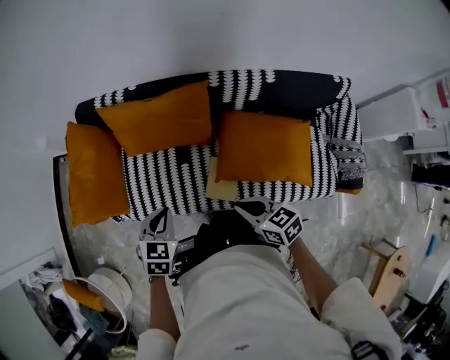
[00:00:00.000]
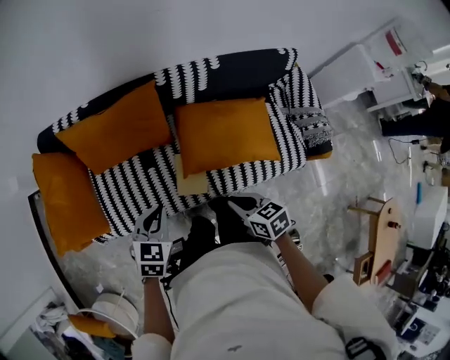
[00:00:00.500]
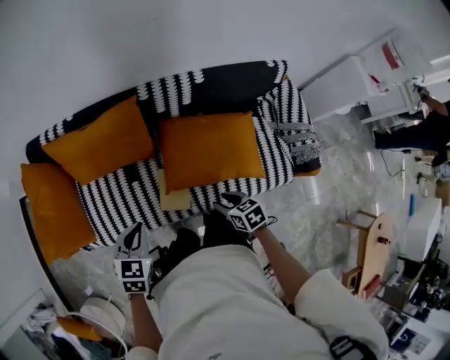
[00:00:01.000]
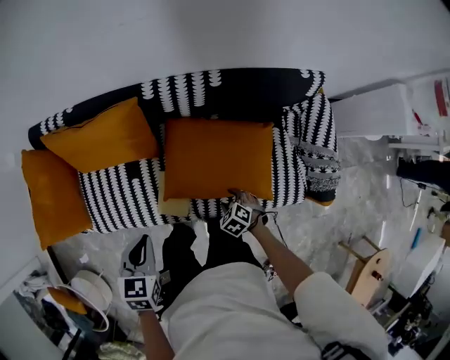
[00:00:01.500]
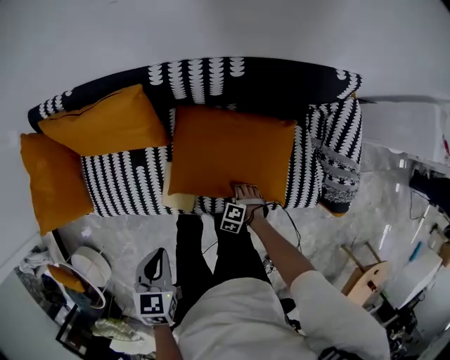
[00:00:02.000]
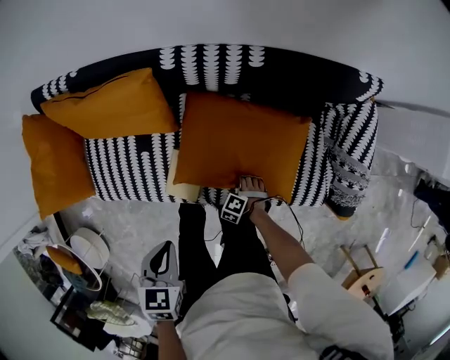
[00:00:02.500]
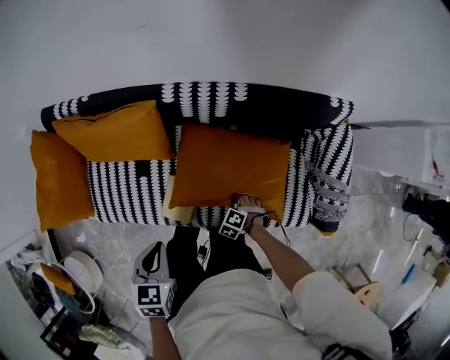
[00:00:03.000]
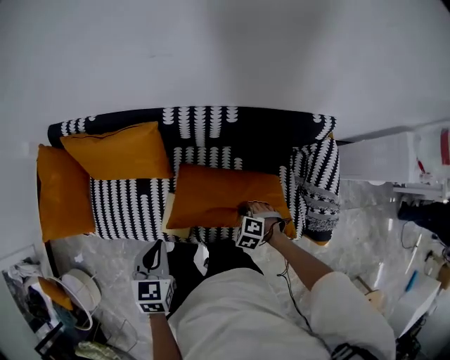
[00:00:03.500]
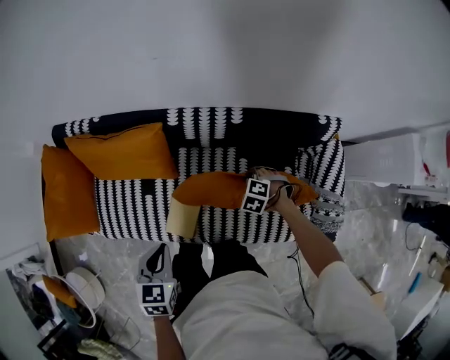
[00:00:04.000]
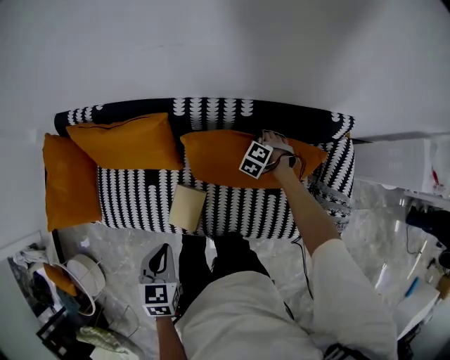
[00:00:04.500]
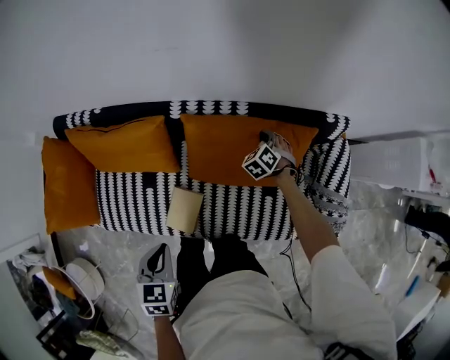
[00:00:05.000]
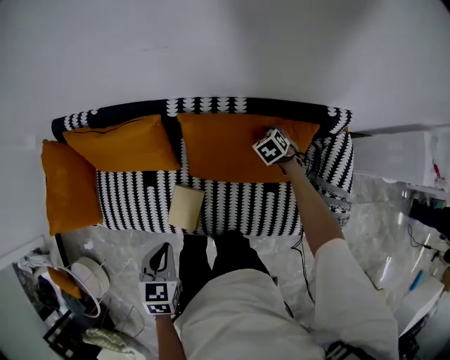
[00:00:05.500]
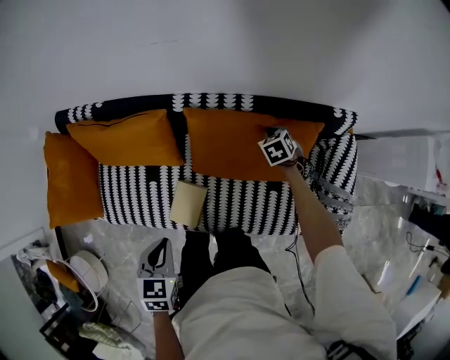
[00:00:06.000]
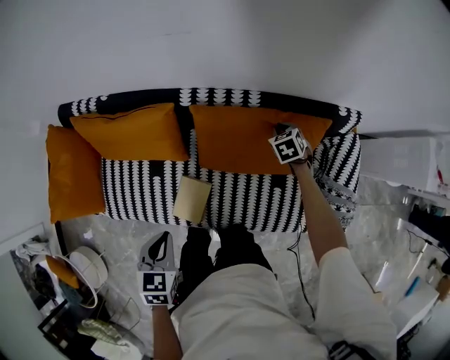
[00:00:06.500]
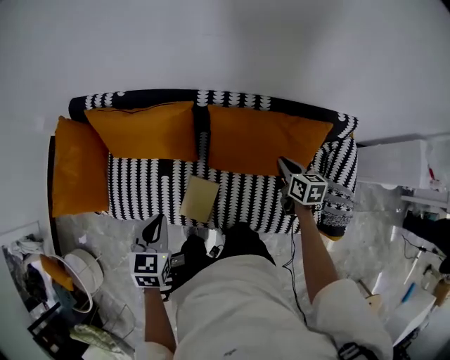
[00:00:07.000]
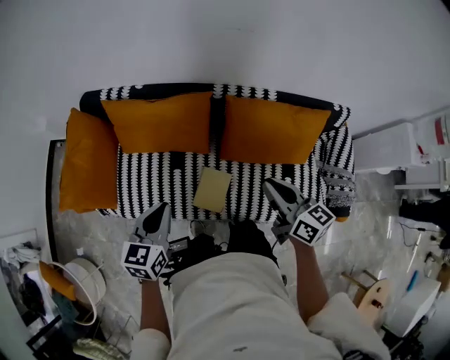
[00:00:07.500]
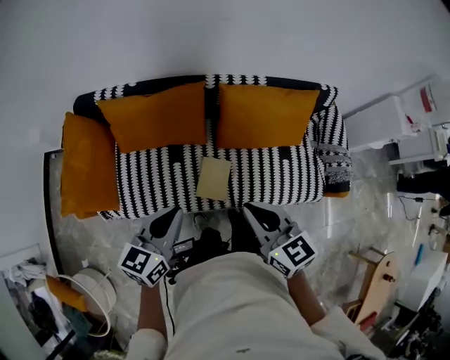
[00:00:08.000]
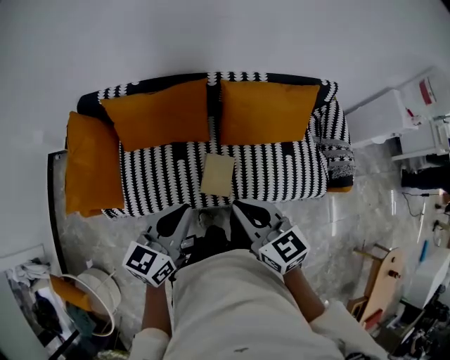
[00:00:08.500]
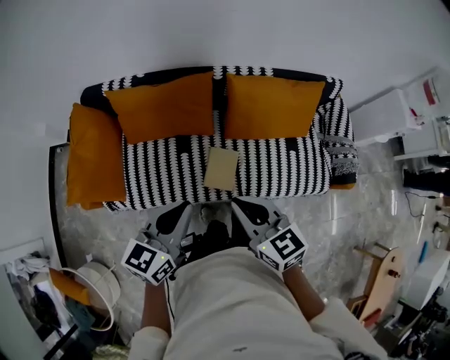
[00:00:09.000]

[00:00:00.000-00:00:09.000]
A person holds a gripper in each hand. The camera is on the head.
00:00:00.000 to 00:00:02.000: The left gripper shifts by about 20 cm, and swivels about 20 degrees. The right gripper travels downward by about 35 cm, angles its fingers downward, by some 50 degrees, and opens.
00:00:02.000 to 00:00:04.500: The right gripper moves roughly 40 cm, rotates approximately 20 degrees, and closes; the left gripper shifts by roughly 5 cm.
00:00:04.500 to 00:00:07.000: The left gripper is displaced to the left by approximately 10 cm, while the right gripper shifts about 20 cm upward and backward, rolls clockwise, seen from behind, by about 80 degrees, and opens, then closes once more.
00:00:07.000 to 00:00:09.000: The right gripper moves to the left, backward and upward, some 50 cm, and swivels some 30 degrees; the left gripper goes approximately 20 cm backward, upward and to the left, and swivels about 40 degrees.

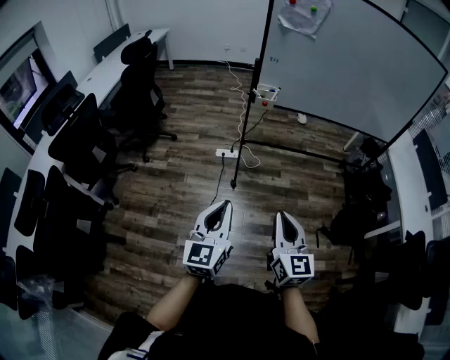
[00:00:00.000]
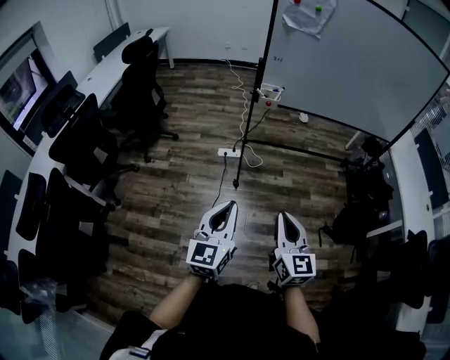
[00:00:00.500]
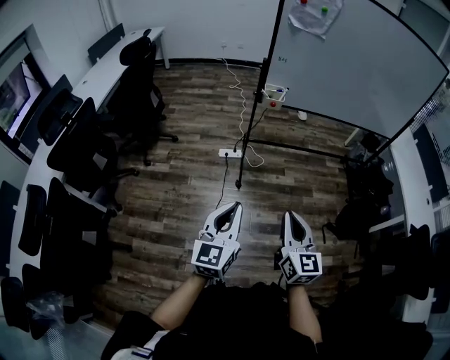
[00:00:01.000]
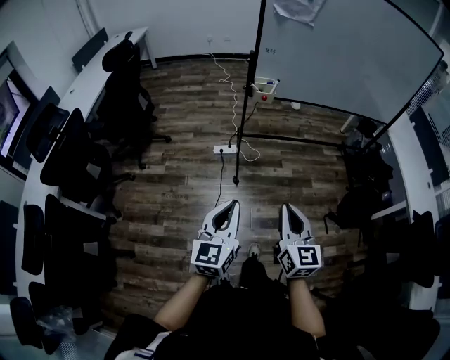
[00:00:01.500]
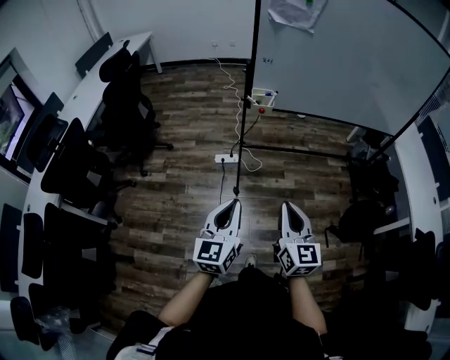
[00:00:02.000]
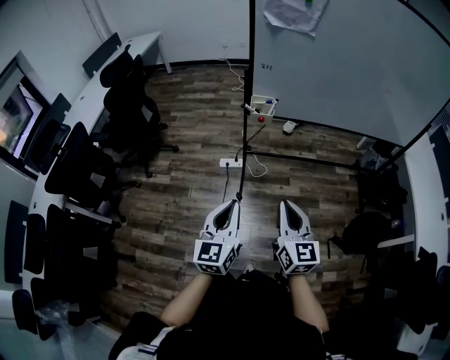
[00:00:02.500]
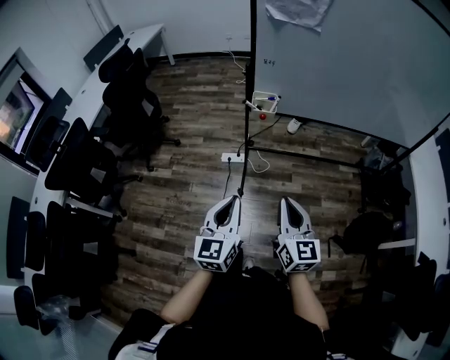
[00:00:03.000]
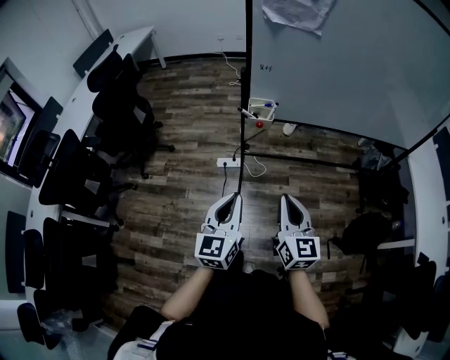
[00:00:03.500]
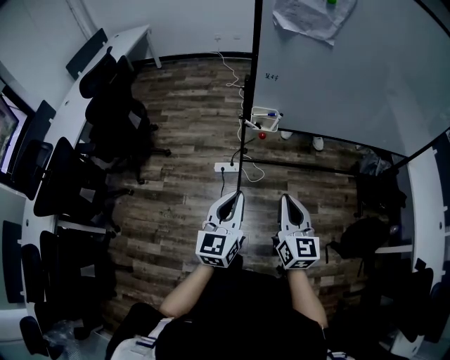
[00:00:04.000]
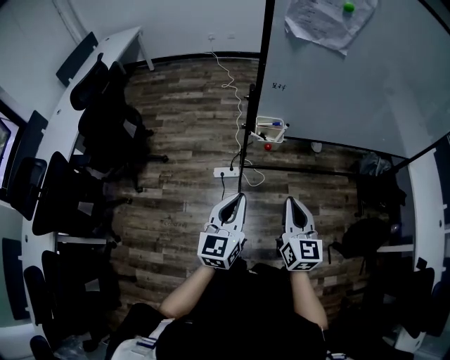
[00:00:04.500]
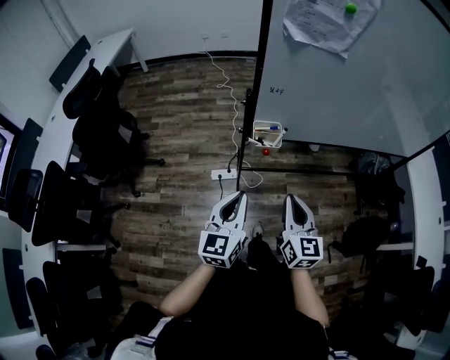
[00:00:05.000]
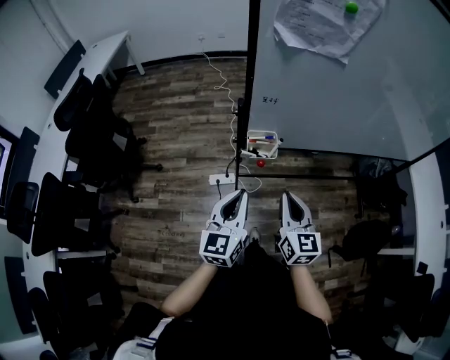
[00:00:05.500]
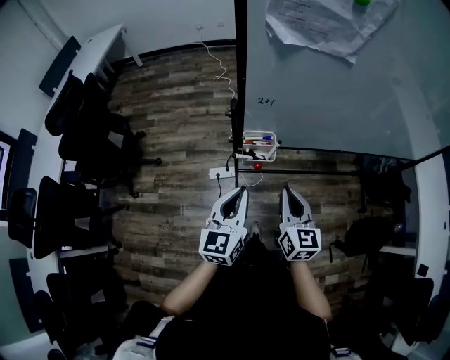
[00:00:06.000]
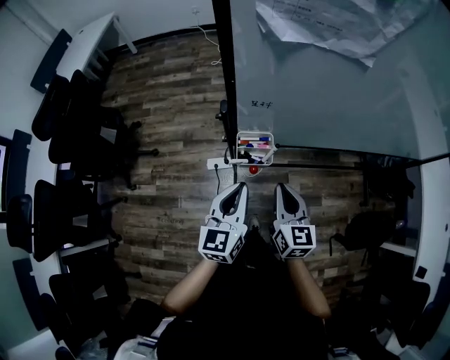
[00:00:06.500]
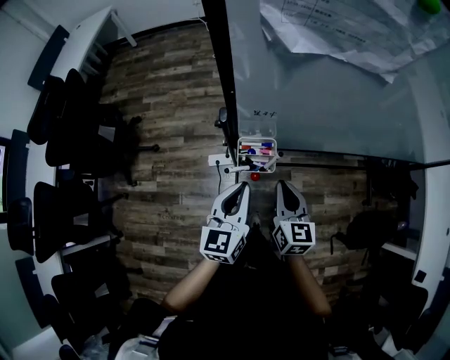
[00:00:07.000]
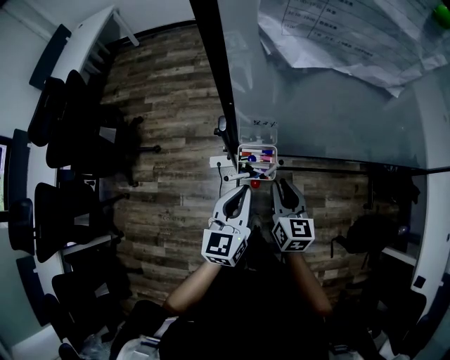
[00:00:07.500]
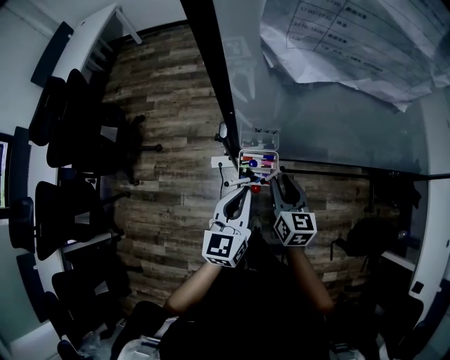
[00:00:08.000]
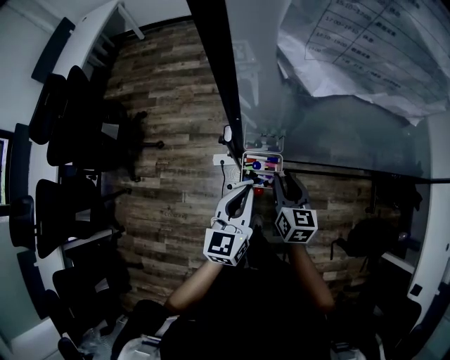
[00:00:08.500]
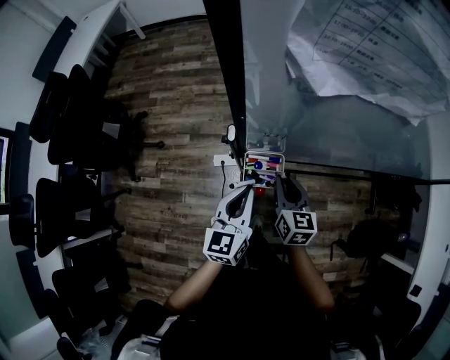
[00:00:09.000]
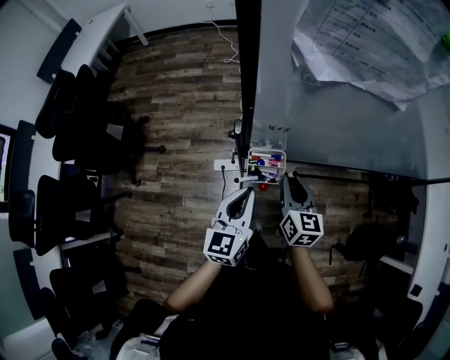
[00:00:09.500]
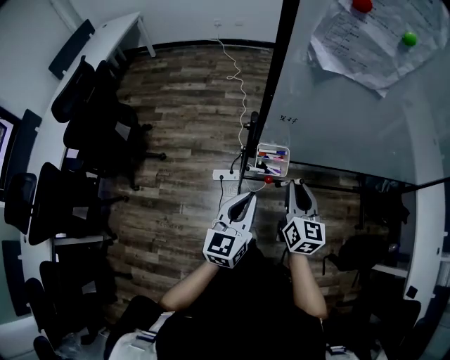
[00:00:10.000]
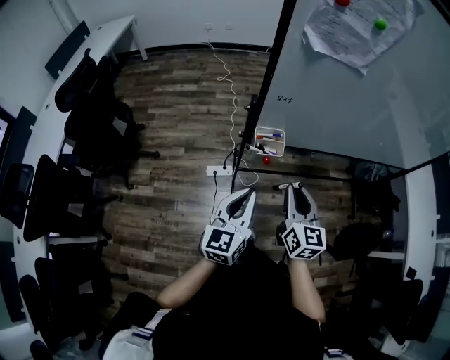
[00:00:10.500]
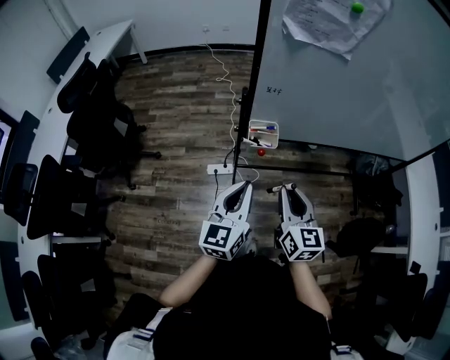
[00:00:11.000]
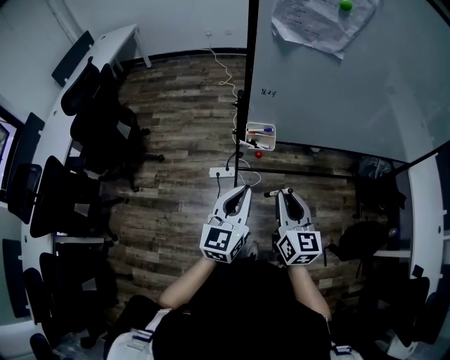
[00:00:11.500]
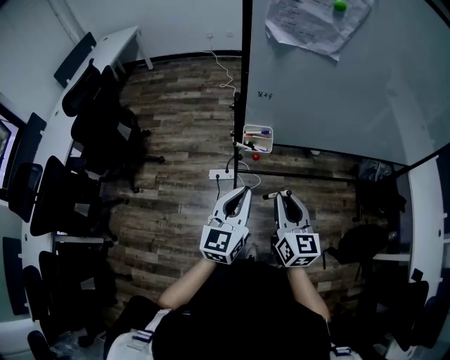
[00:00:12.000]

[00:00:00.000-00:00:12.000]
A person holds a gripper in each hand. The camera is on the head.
00:00:00.000 to 00:00:02.000: Both grippers travel together forward, approximately 15 cm.
00:00:02.000 to 00:00:04.000: The grippers both shift forward by approximately 20 cm.
00:00:04.000 to 00:00:06.000: Both grippers move forward, some 20 cm.
00:00:06.000 to 00:00:08.000: Both grippers travel together forward and downward, some 15 cm. The right gripper opens.
00:00:08.000 to 00:00:10.000: The left gripper travels backward by approximately 10 cm. Meanwhile the right gripper is displaced upward and backward by approximately 10 cm.
00:00:10.000 to 00:00:12.000: The right gripper is displaced backward by some 15 cm. Meanwhile the left gripper shifts some 10 cm backward.

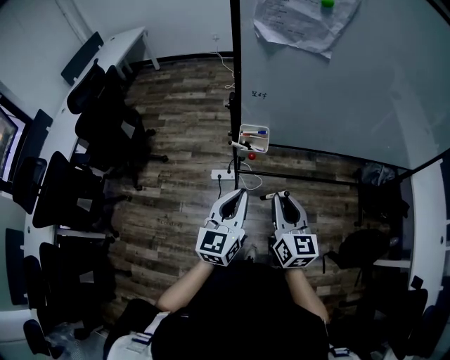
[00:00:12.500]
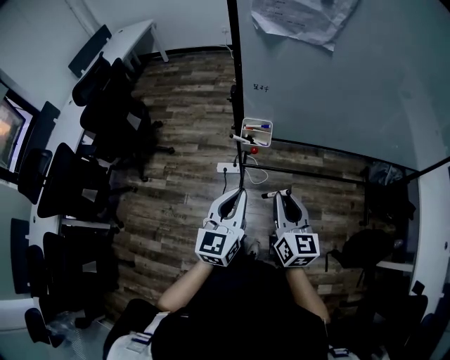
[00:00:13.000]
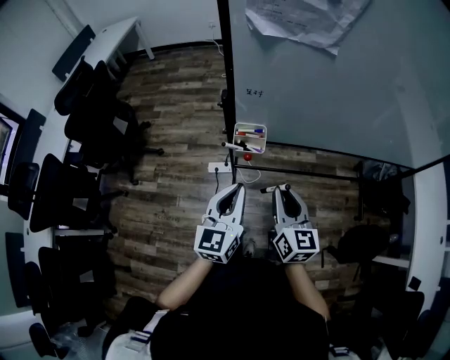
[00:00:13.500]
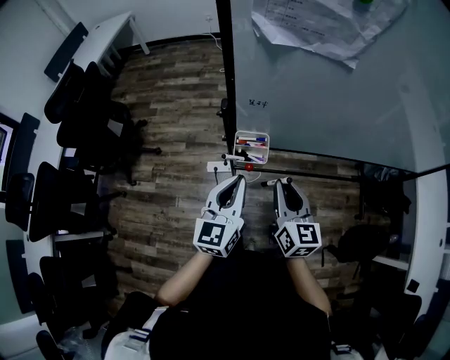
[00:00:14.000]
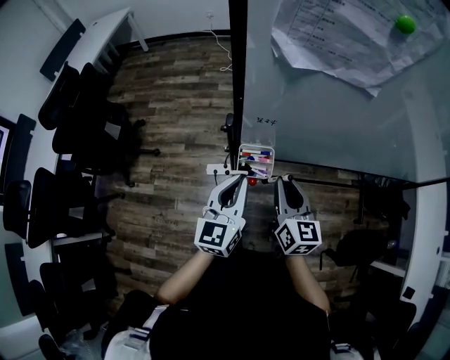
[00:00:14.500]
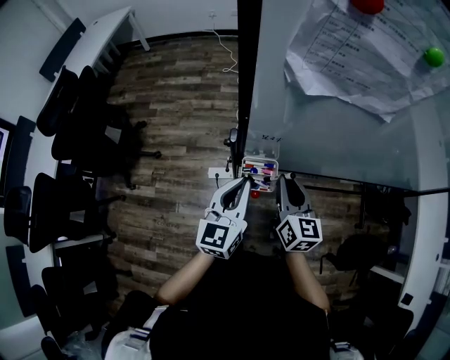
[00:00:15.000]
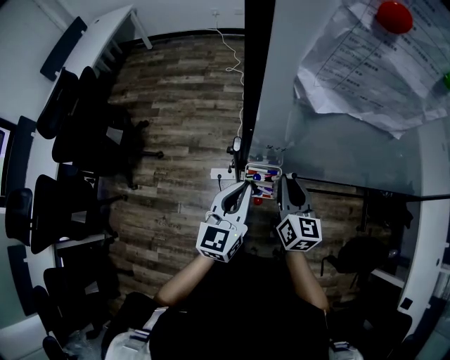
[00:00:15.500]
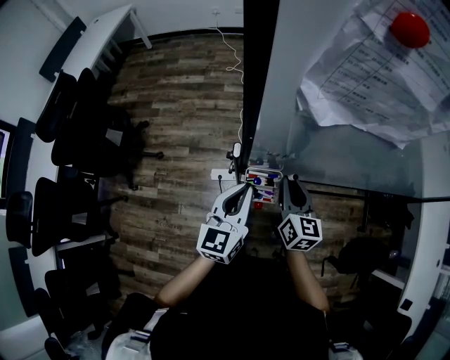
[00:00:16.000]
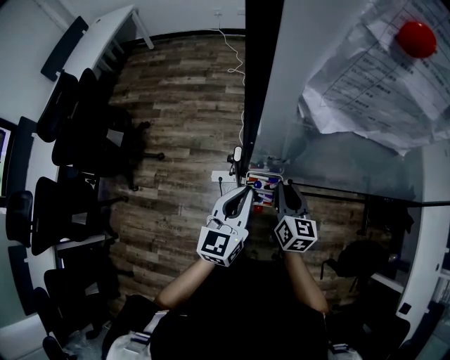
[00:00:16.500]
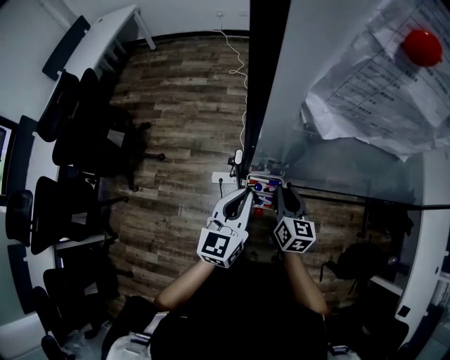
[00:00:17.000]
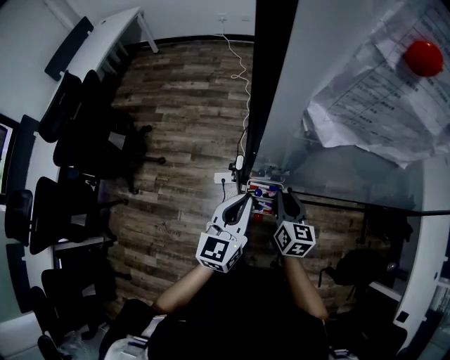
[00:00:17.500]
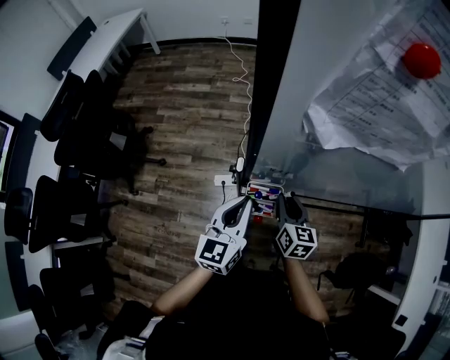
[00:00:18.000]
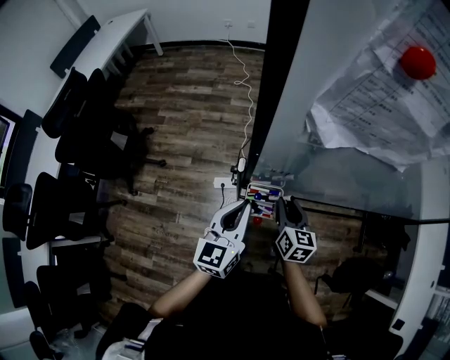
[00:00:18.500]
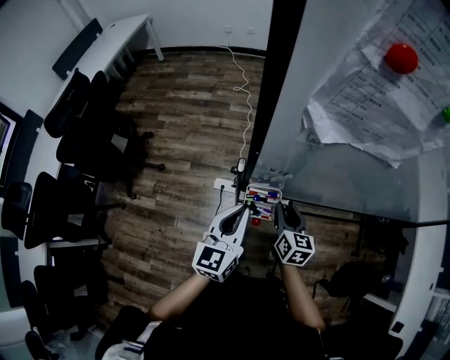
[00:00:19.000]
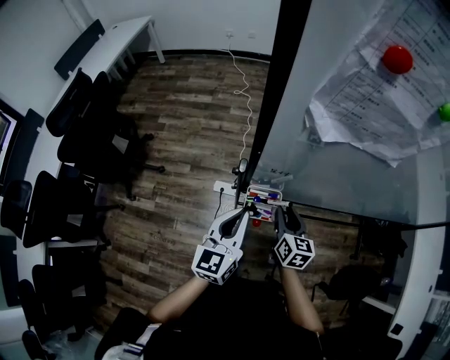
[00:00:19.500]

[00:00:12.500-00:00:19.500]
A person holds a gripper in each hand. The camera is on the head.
00:00:12.500 to 00:00:14.500: Both grippers move forward, about 20 cm.
00:00:14.500 to 00:00:16.000: The two grippers go some 10 cm forward.
00:00:16.000 to 00:00:17.500: There are only small adjustments of the grippers.
00:00:17.500 to 00:00:19.500: There are only small adjustments of the grippers.
